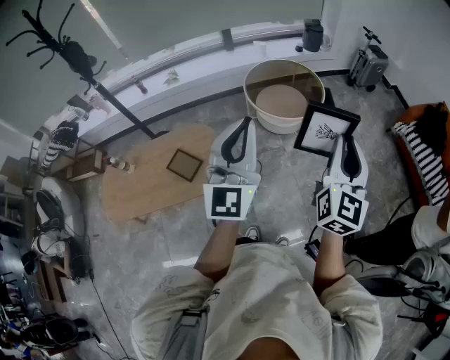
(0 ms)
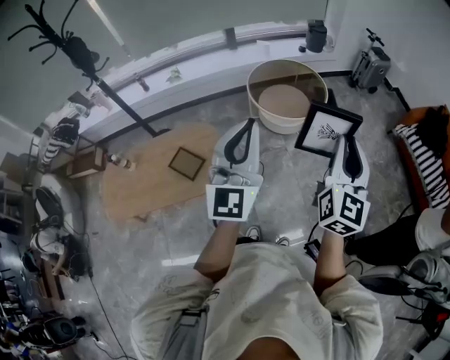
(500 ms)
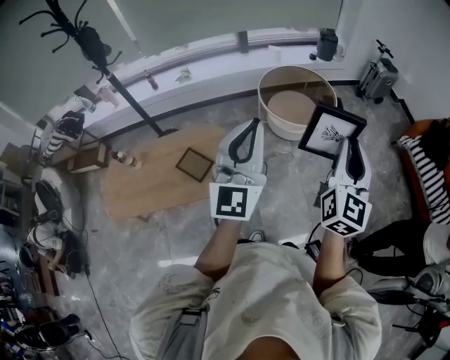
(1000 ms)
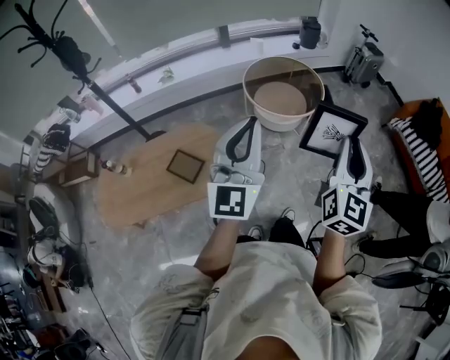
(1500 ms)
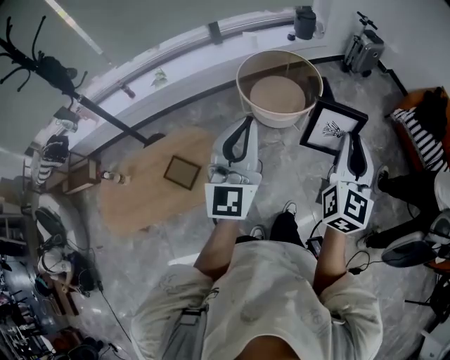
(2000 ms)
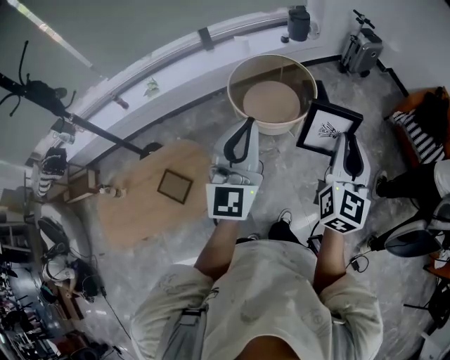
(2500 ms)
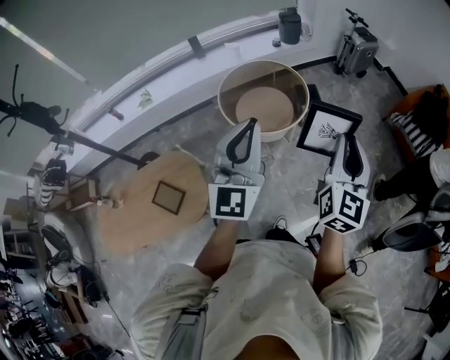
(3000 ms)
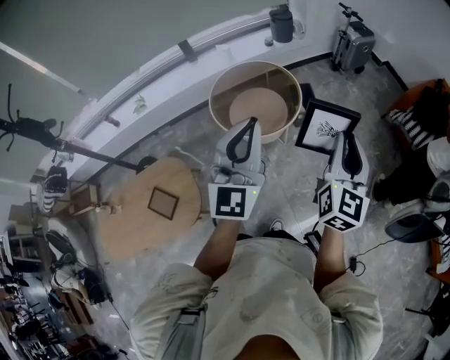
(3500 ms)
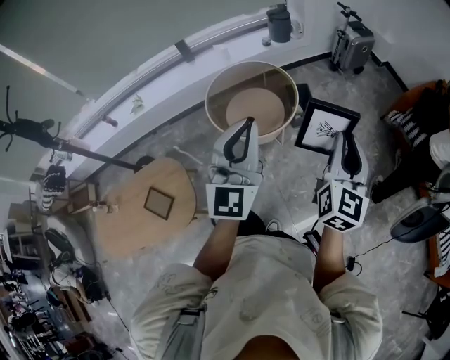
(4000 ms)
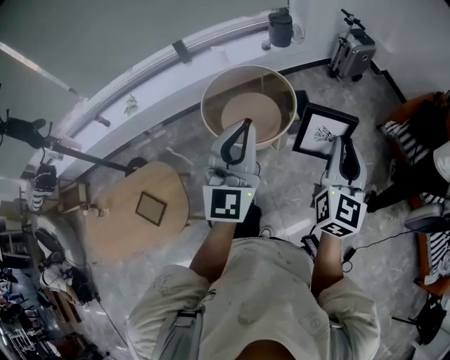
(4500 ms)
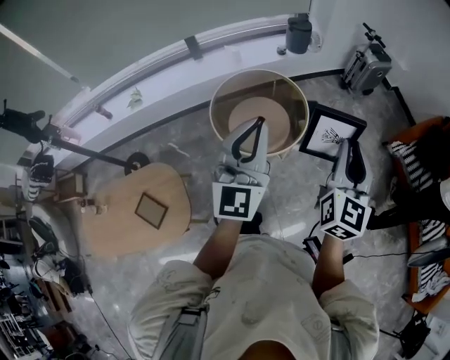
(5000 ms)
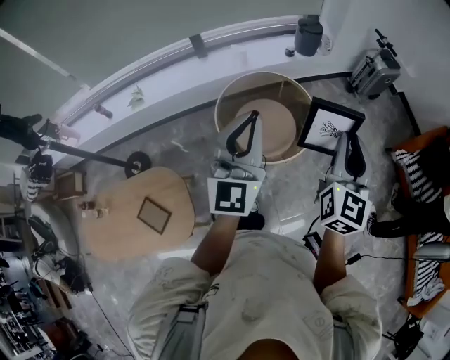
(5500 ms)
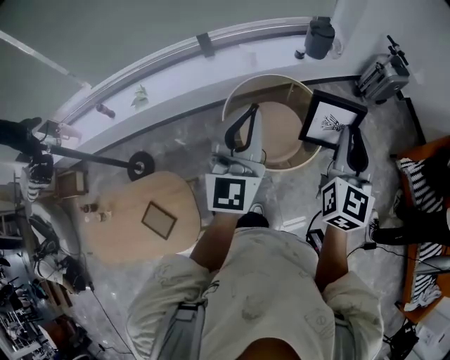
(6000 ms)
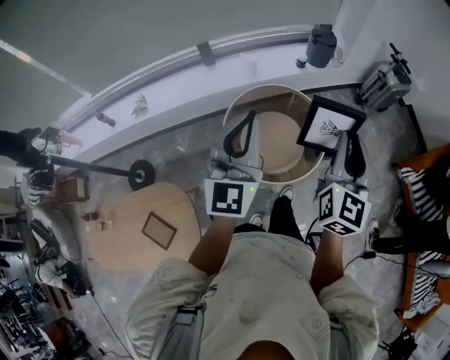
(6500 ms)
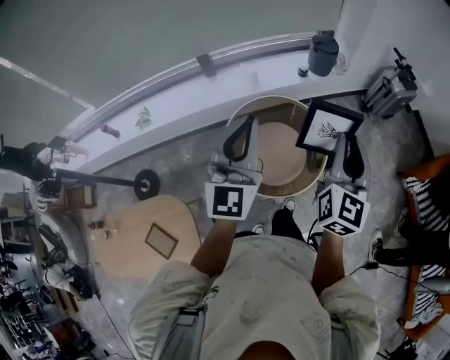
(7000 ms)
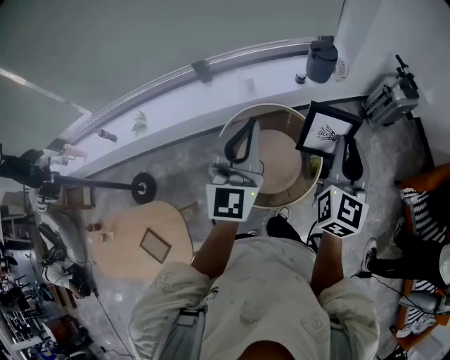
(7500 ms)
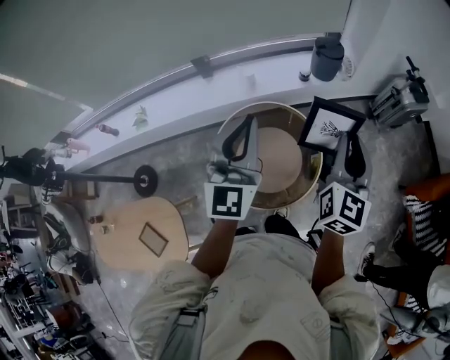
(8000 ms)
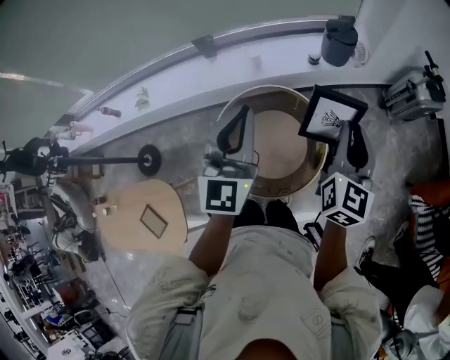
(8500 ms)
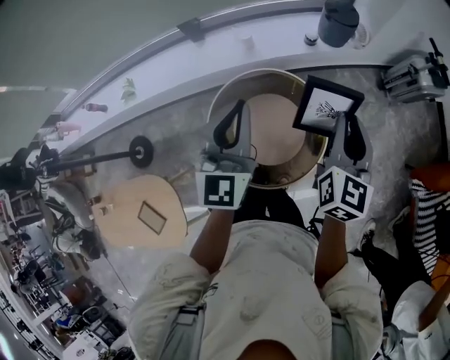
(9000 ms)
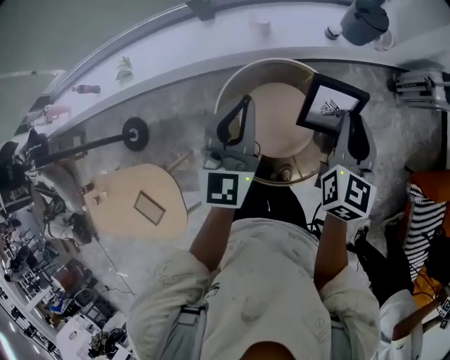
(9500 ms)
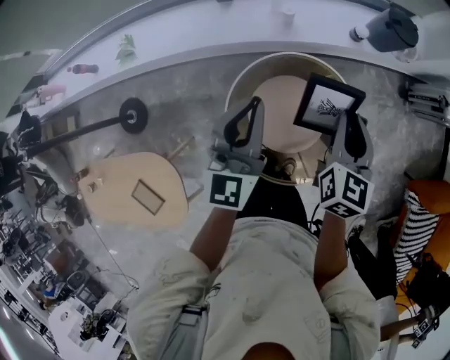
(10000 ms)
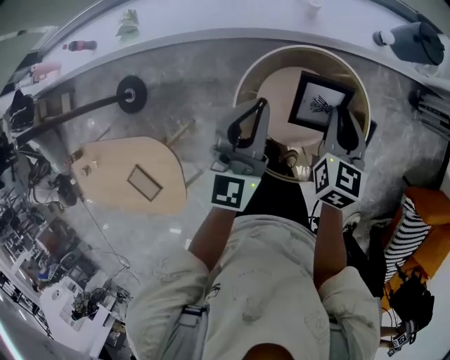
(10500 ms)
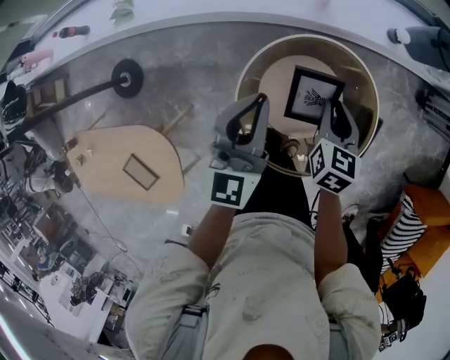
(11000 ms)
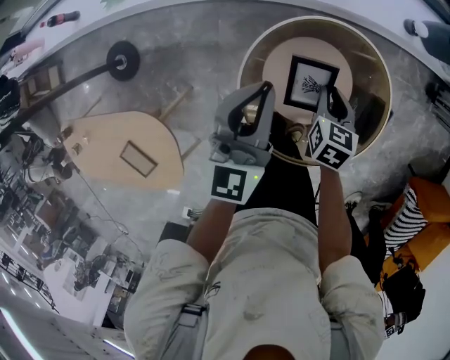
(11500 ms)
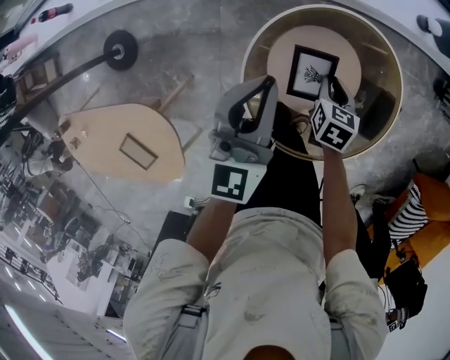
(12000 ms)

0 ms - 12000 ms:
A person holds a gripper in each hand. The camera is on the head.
0 ms - 2000 ms: The two grippers go roughly 5 cm forward.
2000 ms - 4000 ms: The grippers both shift forward and to the right by roughly 30 cm.
4000 ms - 6000 ms: The grippers both shift forward and to the left by some 30 cm.
6000 ms - 8000 ms: Both grippers travel together forward, some 25 cm.
8000 ms - 10000 ms: The left gripper is displaced downward, to the left and forward by roughly 30 cm, while the right gripper shifts about 30 cm to the left, downward and forward, and swivels approximately 30 degrees.
10000 ms - 12000 ms: The left gripper is displaced downward and to the left by some 20 cm, while the right gripper is displaced downward by about 35 cm, and tilts its fingers roughly 30 degrees downward.

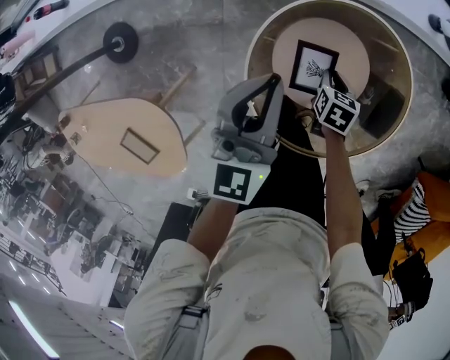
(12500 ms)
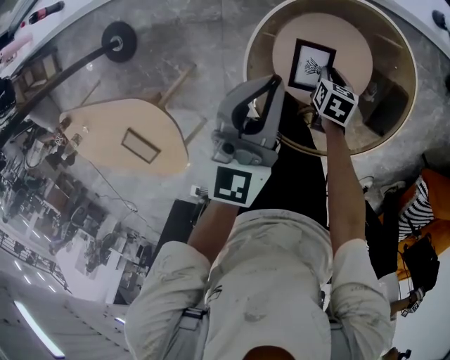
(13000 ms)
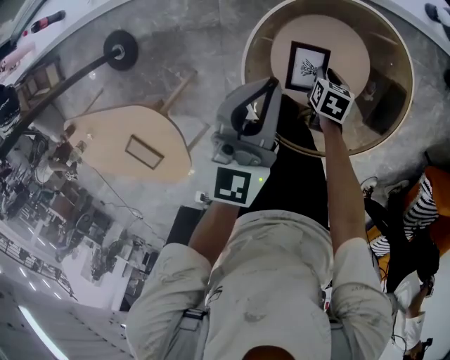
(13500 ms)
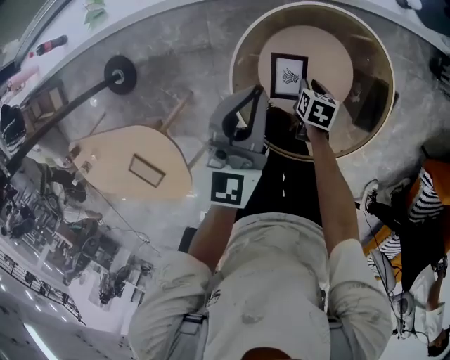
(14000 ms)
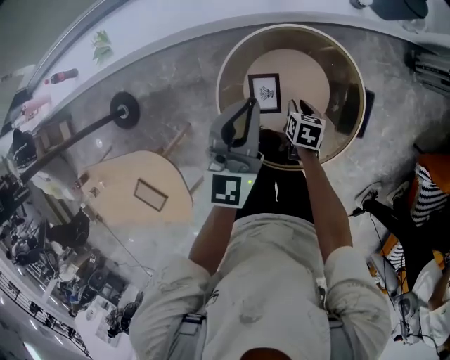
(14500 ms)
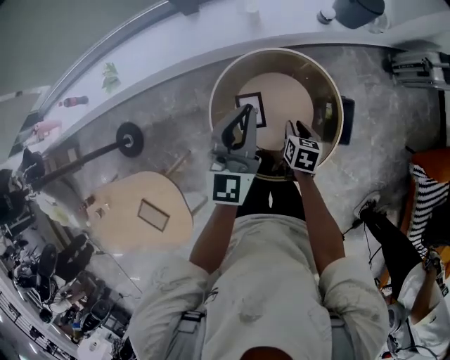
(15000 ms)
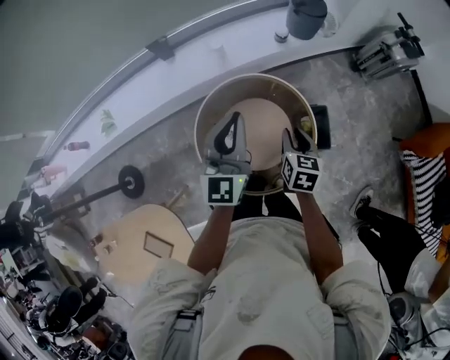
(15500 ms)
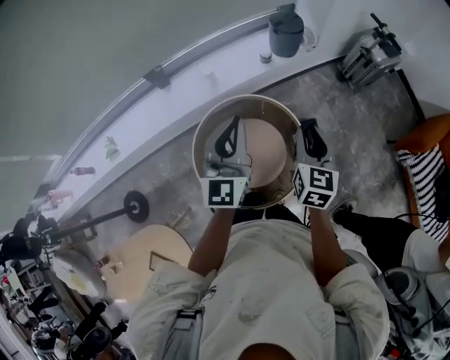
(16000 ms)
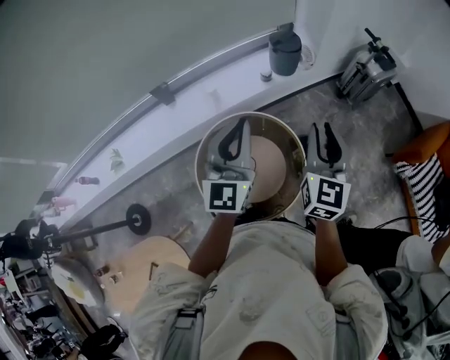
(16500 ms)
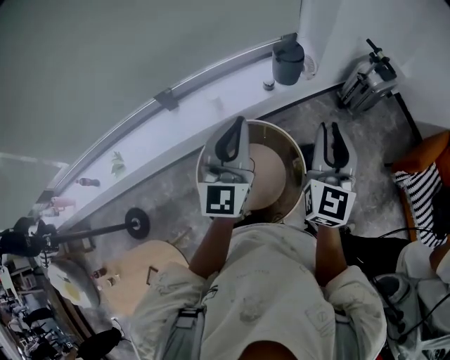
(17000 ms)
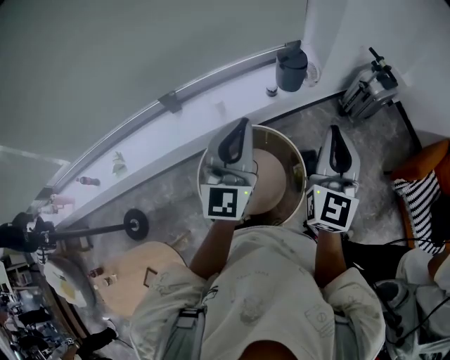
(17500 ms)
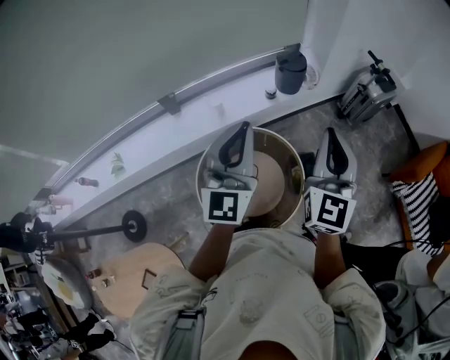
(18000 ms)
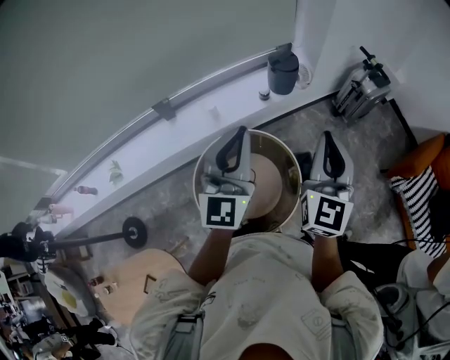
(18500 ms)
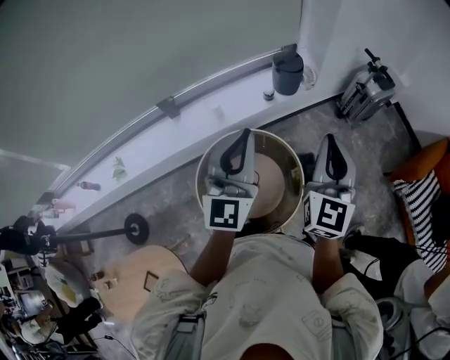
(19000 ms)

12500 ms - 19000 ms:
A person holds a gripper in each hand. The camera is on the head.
12500 ms - 14500 ms: The right gripper moves upward and to the right, approximately 10 cm. Meanwhile the left gripper moves to the right and upward, about 10 cm.
14500 ms - 17000 ms: The right gripper travels upward by approximately 50 cm, and points its fingers about 70 degrees further upward, while the left gripper shifts some 25 cm upward, and rotates approximately 20 degrees.
17000 ms - 19000 ms: The right gripper closes its fingers.

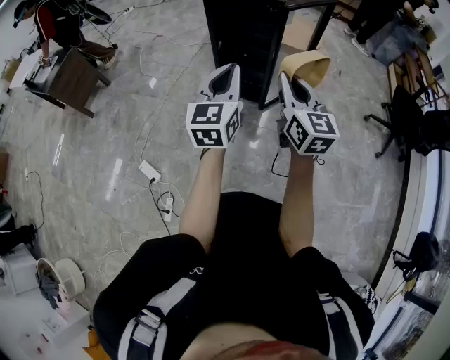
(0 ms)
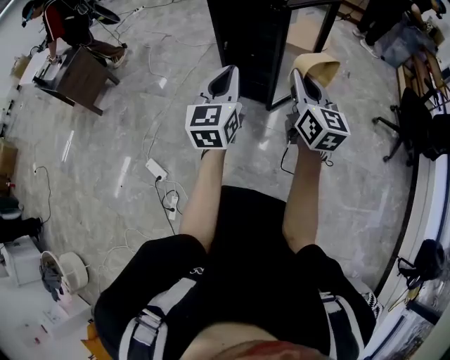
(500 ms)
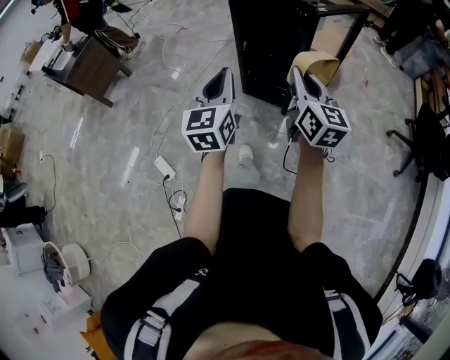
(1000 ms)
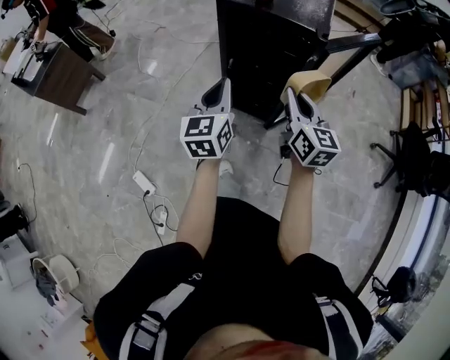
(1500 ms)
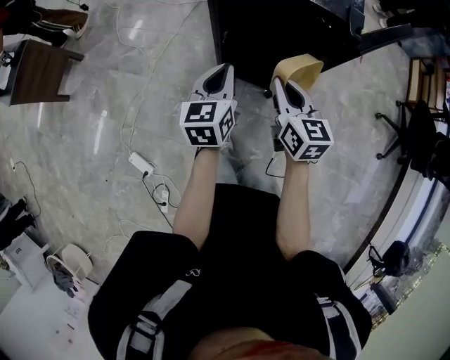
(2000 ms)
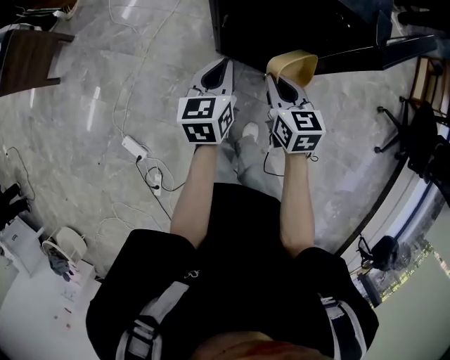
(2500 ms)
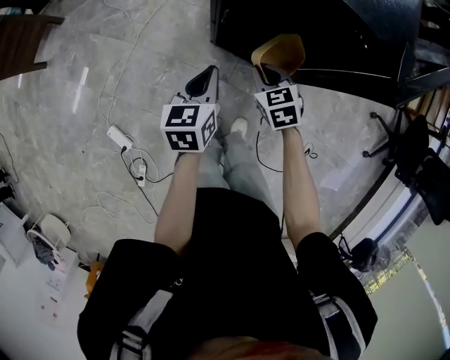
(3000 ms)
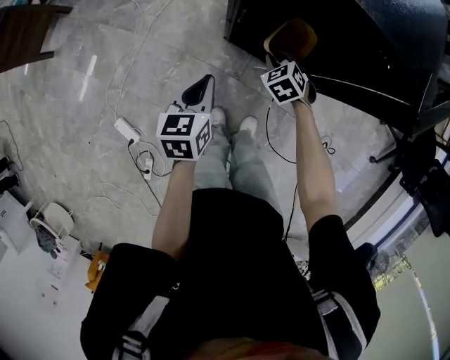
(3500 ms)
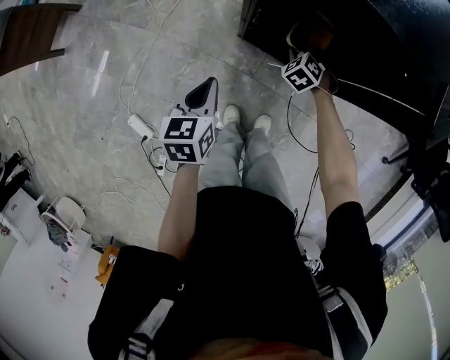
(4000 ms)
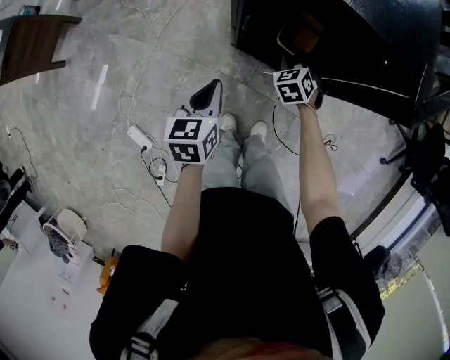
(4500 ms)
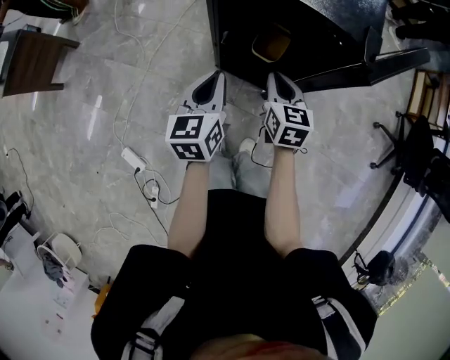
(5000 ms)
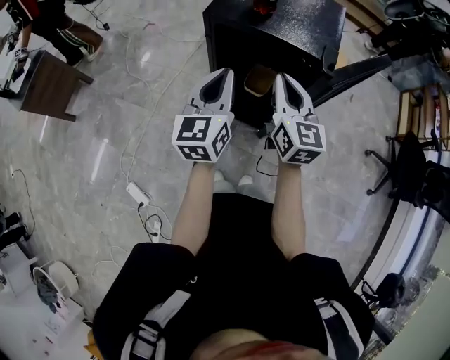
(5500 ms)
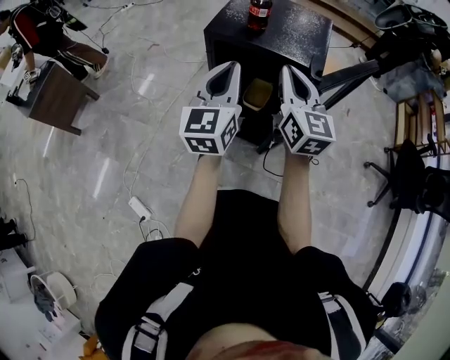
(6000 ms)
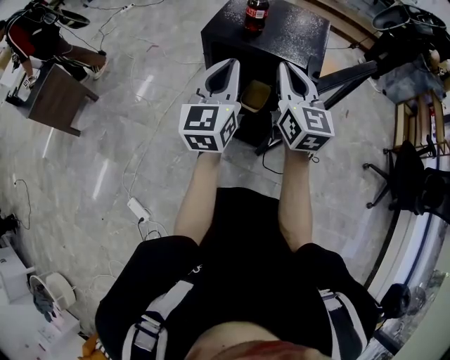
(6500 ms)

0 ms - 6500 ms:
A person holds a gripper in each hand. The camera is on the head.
0 ms - 2000 ms: The two grippers go roughly 40 cm forward and downward. The right gripper rotates some 20 degrees. The left gripper turns by about 20 degrees.
2000 ms - 4500 ms: The left gripper is displaced downward and to the left by approximately 15 cm; the right gripper shifts about 30 cm downward and forward, and tilts its fingers some 30 degrees downward.
4500 ms - 6500 ms: Both grippers travel together upward, some 40 cm. The right gripper angles its fingers upward, by roughly 60 degrees. The left gripper angles its fingers upward, by roughly 40 degrees.

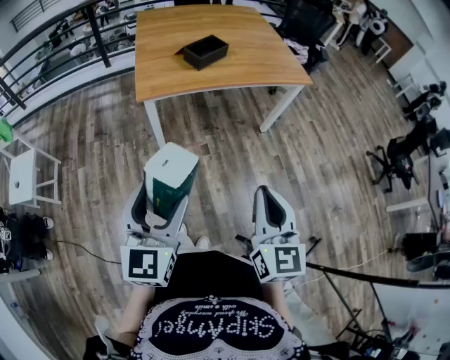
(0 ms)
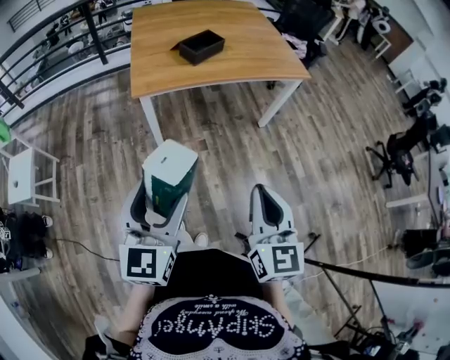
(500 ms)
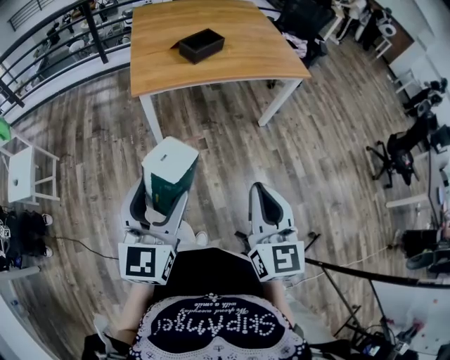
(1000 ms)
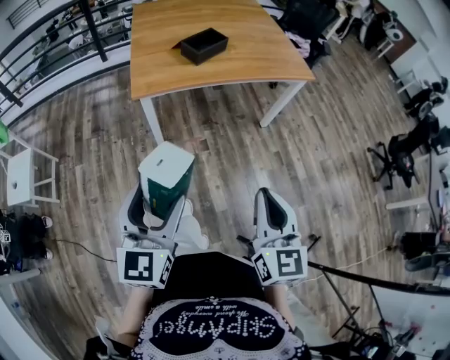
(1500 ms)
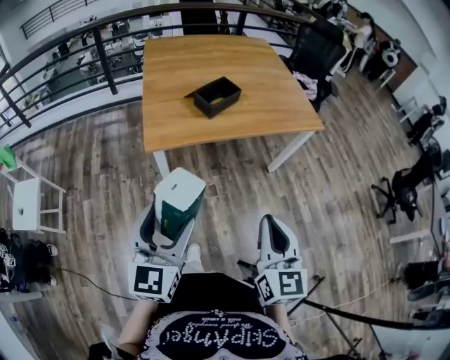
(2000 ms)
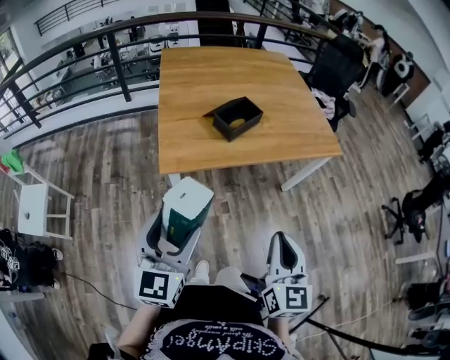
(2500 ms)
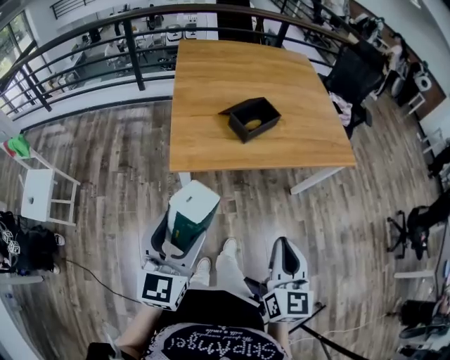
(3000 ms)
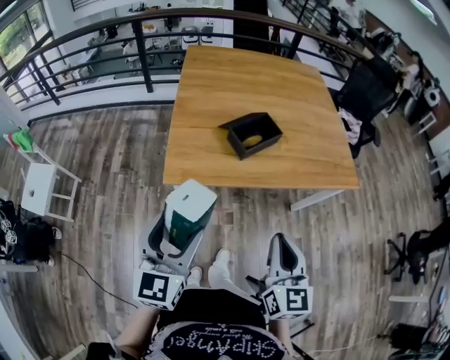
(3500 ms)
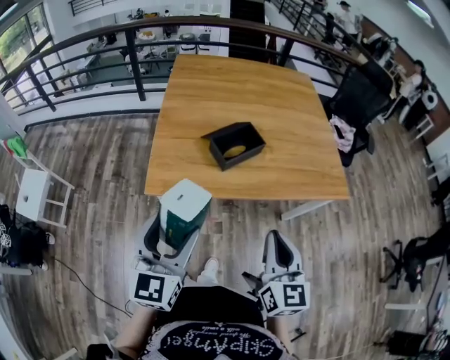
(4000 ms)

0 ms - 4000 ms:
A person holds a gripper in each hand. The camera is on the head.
0 ms - 2000 ms: The two grippers go approximately 15 cm forward.
2000 ms - 4000 ms: Both grippers move forward, approximately 20 cm.
